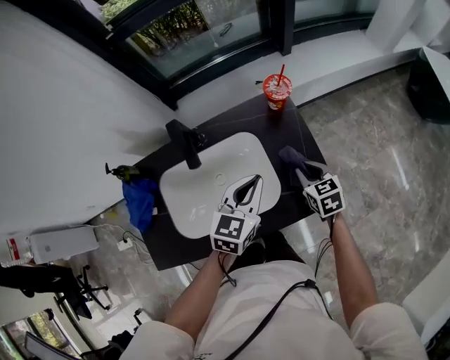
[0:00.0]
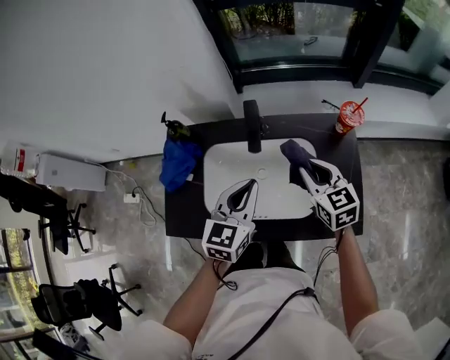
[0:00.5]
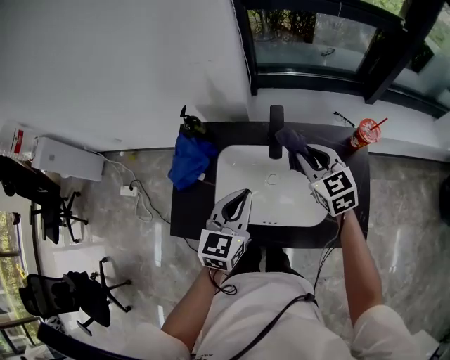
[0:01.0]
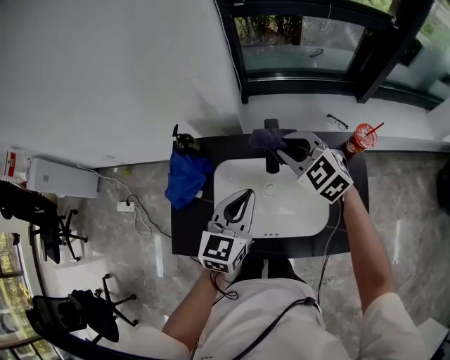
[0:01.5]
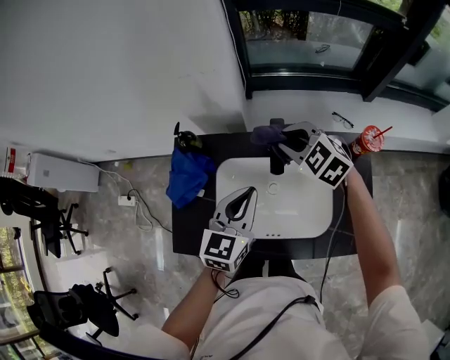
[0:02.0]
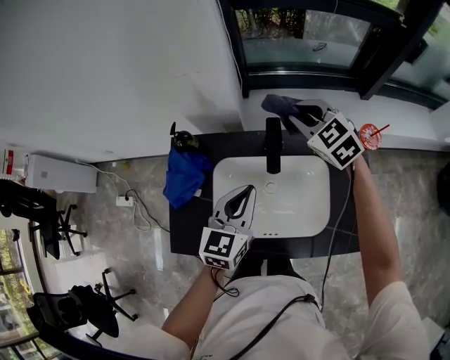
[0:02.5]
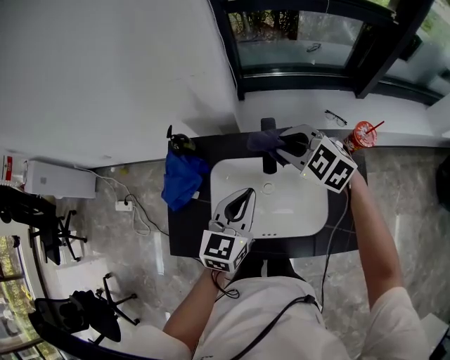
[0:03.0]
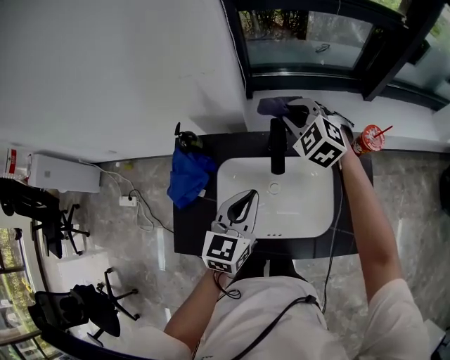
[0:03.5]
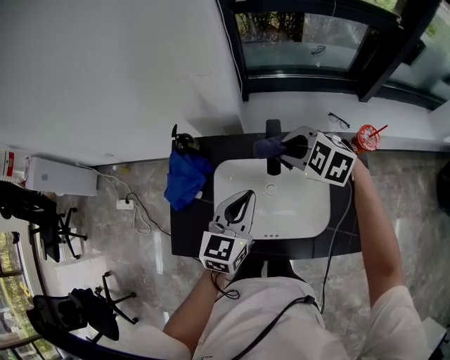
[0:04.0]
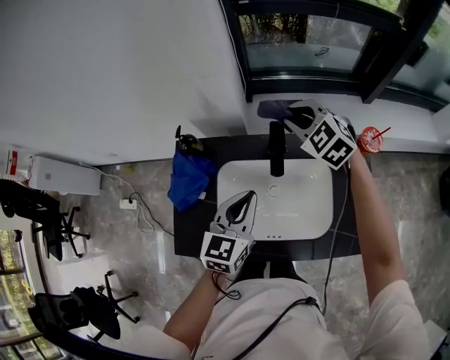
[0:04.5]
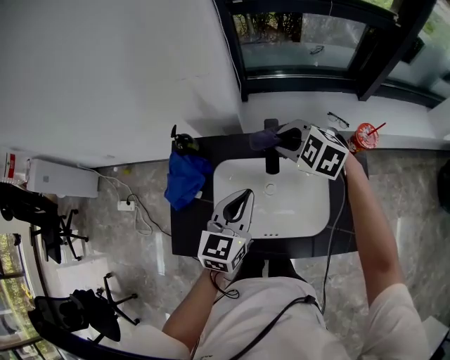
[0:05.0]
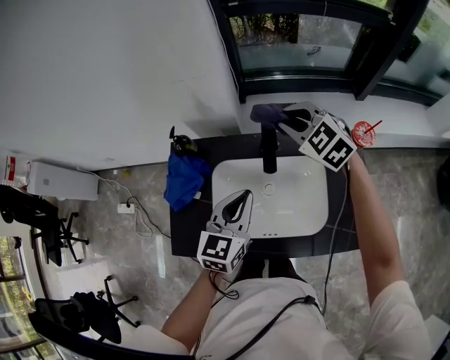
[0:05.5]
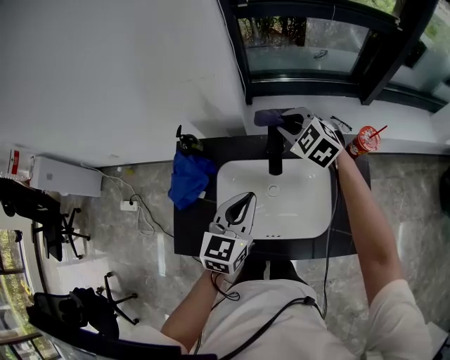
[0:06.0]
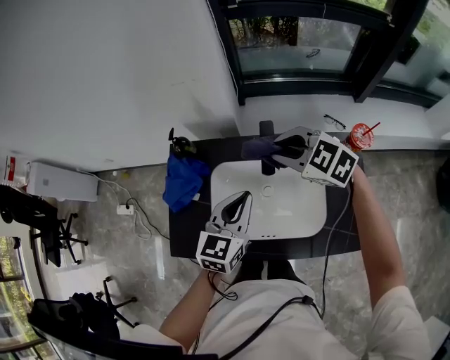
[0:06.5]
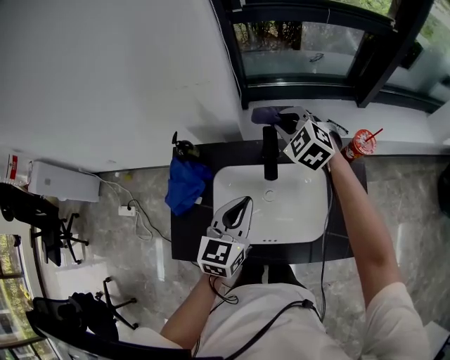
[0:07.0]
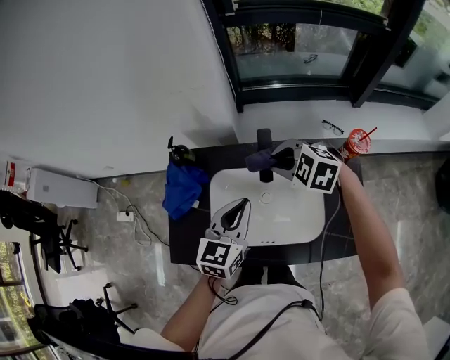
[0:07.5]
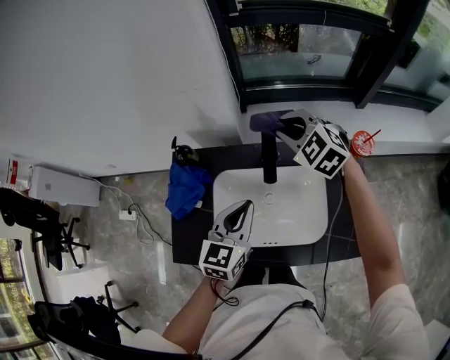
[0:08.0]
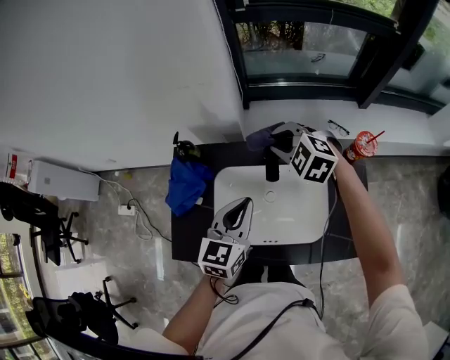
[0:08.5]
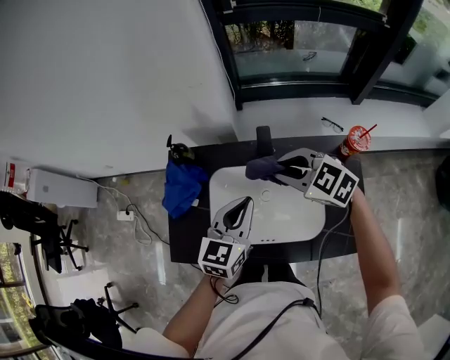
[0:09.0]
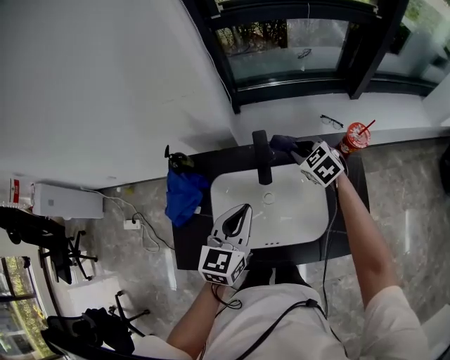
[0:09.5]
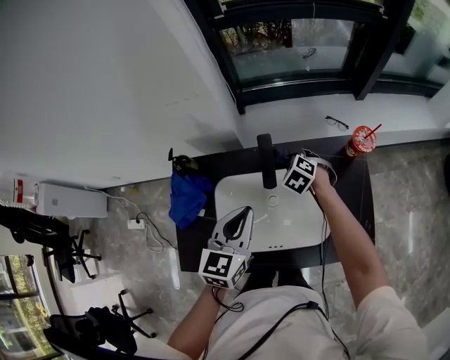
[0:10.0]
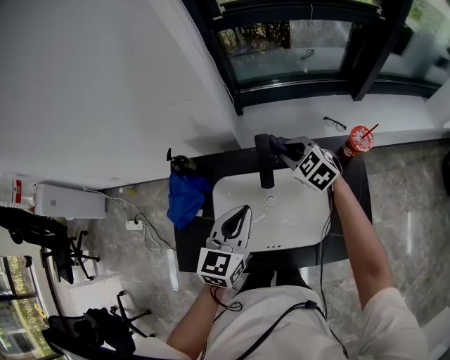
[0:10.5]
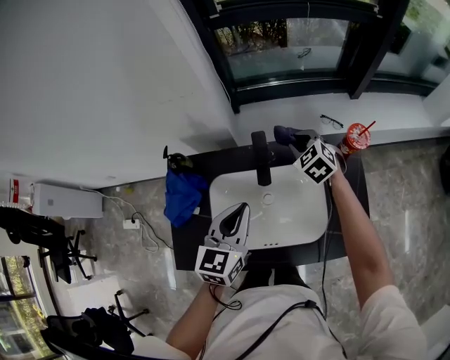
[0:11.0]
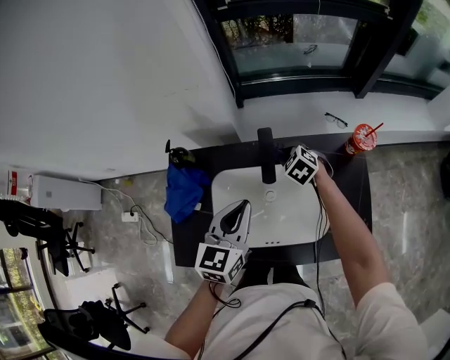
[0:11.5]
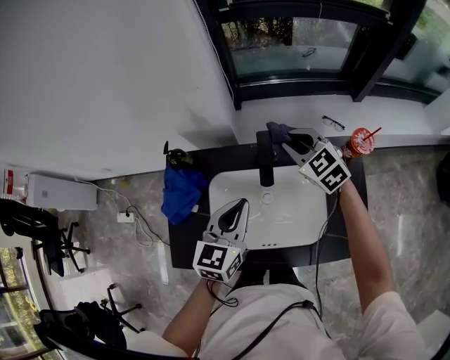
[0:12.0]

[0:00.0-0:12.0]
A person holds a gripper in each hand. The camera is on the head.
0:00.0 to 0:02.0: The right gripper moves approximately 40 cm, and twists some 50 degrees counterclockwise, seen from behind, while the left gripper shifts by some 25 cm, and swivels roughly 30 degrees.
0:02.0 to 0:04.0: The right gripper moves forward and backward over about 10 cm, changing direction 3 times.
0:04.0 to 0:06.0: The right gripper swings forward and backward, roughly 10 cm each way, with 2 reversals.
0:06.0 to 0:08.0: The right gripper moves forward and backward over roughly 10 cm, changing direction 3 times.
0:08.0 to 0:10.0: The right gripper goes approximately 20 cm downward, and swivels approximately 30 degrees.
0:10.0 to 0:12.0: The right gripper moves up and down over roughly 15 cm, changing direction 2 times, and changes its angle by about 30 degrees.

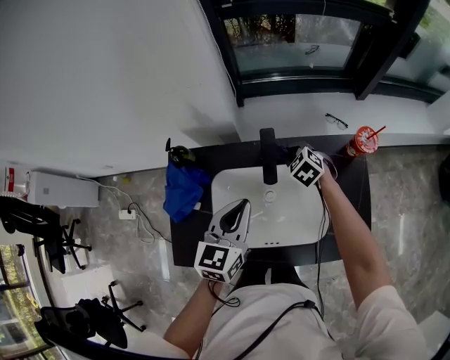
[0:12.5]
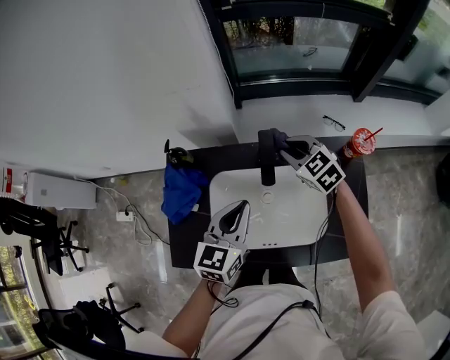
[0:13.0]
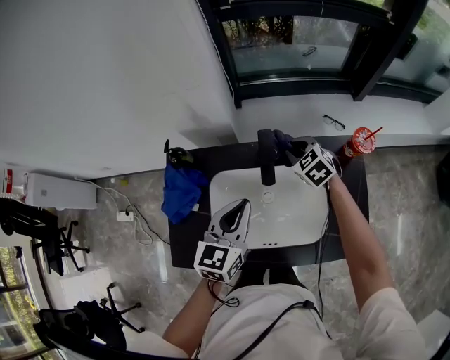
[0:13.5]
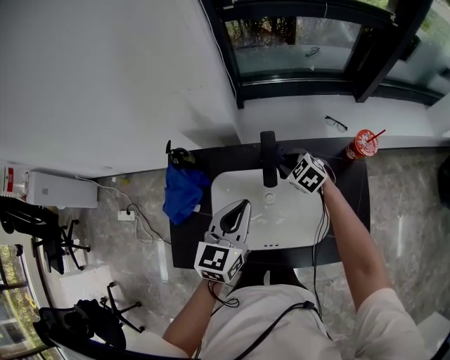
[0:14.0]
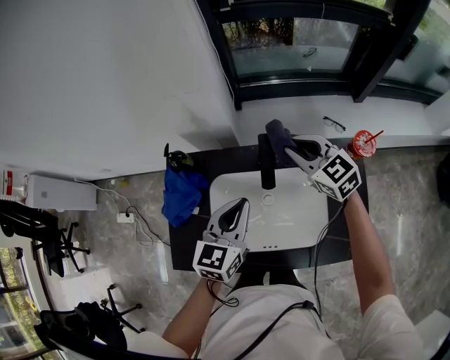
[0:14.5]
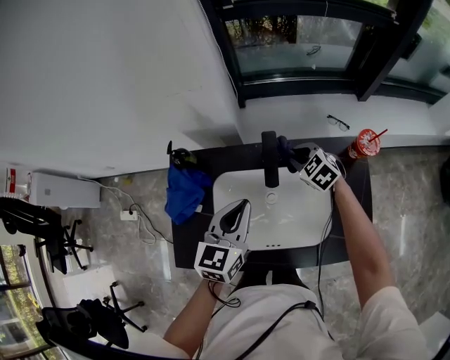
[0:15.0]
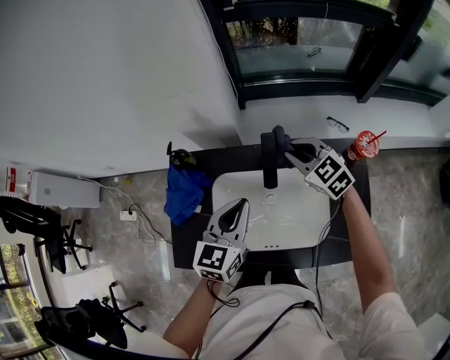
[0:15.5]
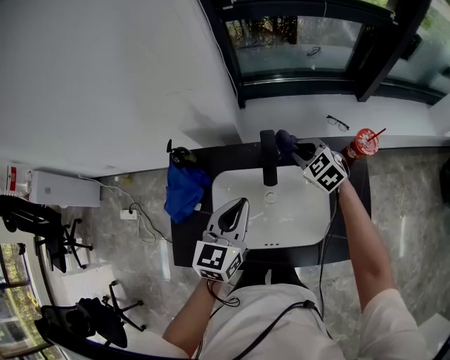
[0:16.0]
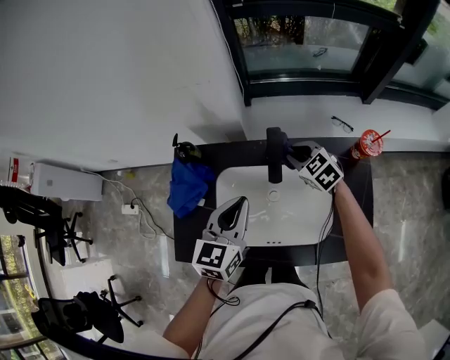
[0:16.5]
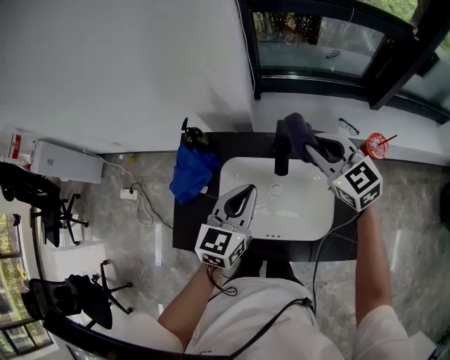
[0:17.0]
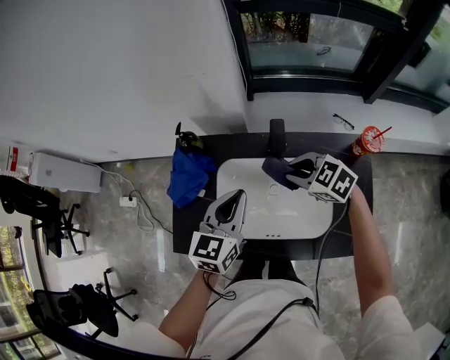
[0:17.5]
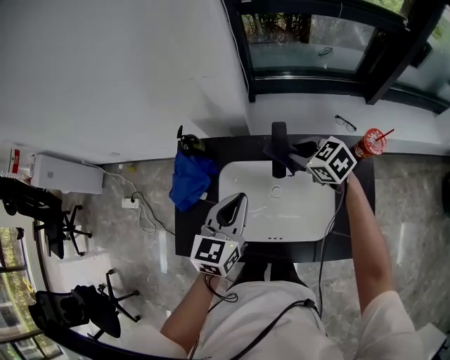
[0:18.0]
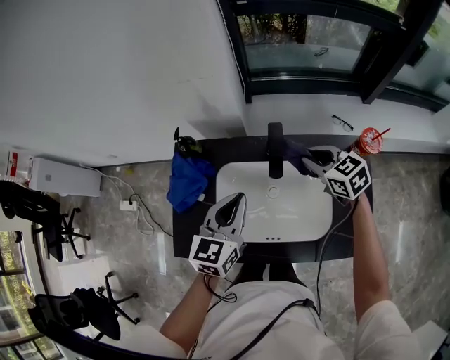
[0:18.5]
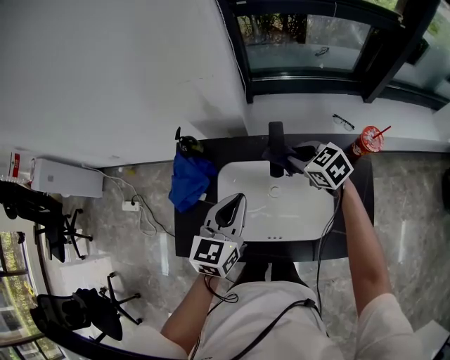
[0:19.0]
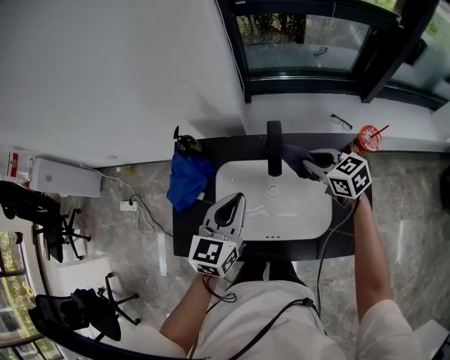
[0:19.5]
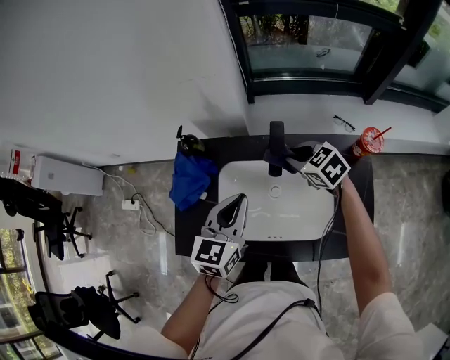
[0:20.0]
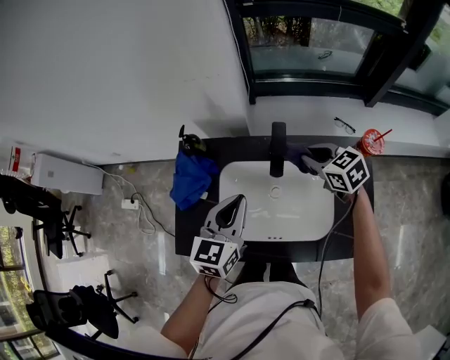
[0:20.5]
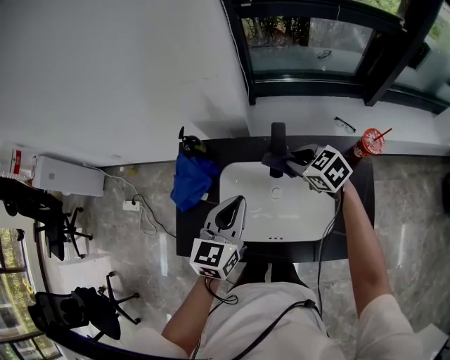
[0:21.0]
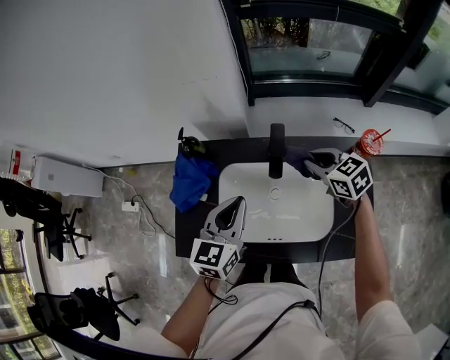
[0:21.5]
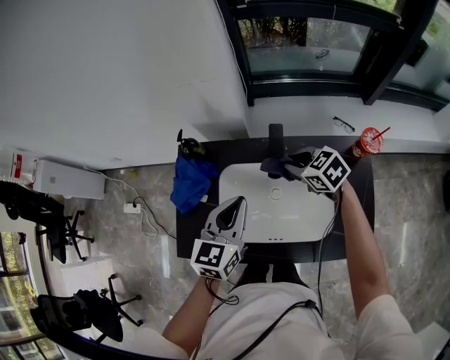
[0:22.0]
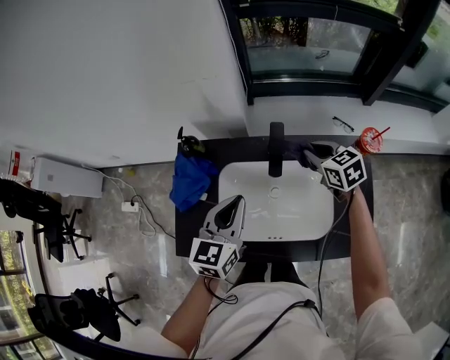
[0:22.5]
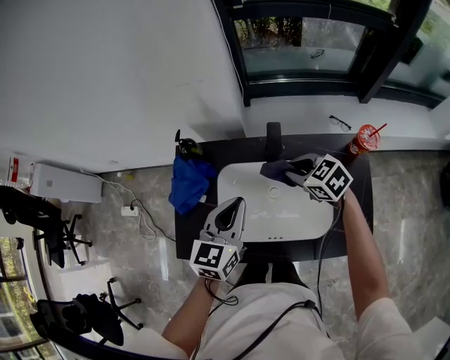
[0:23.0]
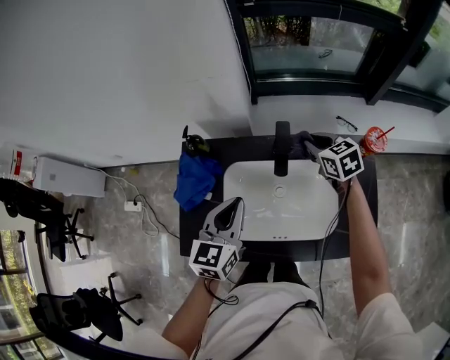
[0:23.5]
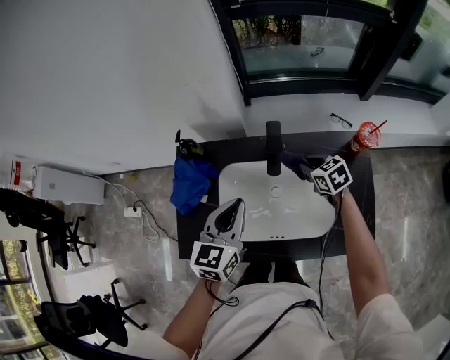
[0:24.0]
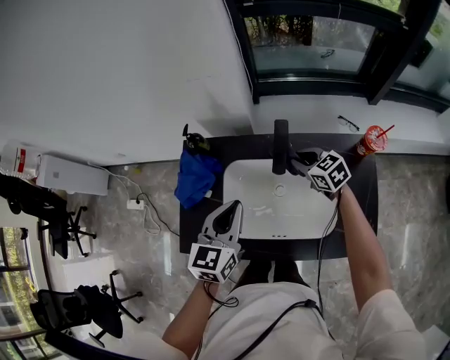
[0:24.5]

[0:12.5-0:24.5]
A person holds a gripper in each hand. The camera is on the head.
0:12.5 to 0:14.5: The right gripper goes up and down, roughly 15 cm each way, reversing 2 times, and tilts its fingers about 30 degrees upward.
0:14.5 to 0:16.5: The right gripper goes up and down, roughly 15 cm each way, reversing 2 times.
0:16.5 to 0:18.5: The right gripper travels upward by some 5 cm.
0:18.5 to 0:20.5: The right gripper moves left and right over some 5 cm, changing direction 3 times.
0:20.5 to 0:22.5: The right gripper goes left and right, approximately 5 cm each way, reversing 3 times.
0:22.5 to 0:24.5: The right gripper goes about 10 cm downward and to the left.

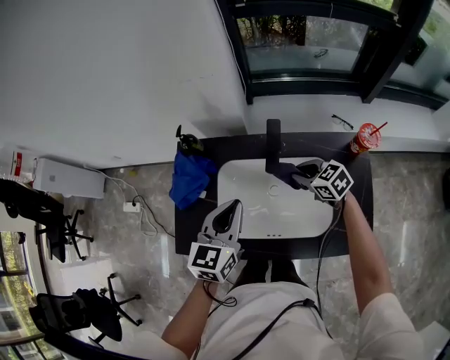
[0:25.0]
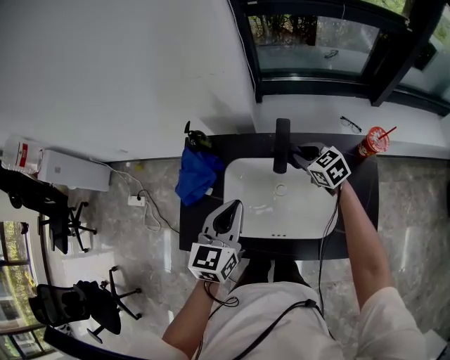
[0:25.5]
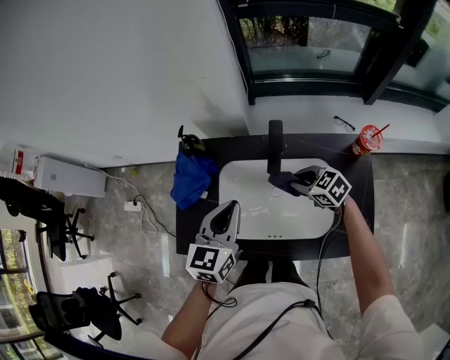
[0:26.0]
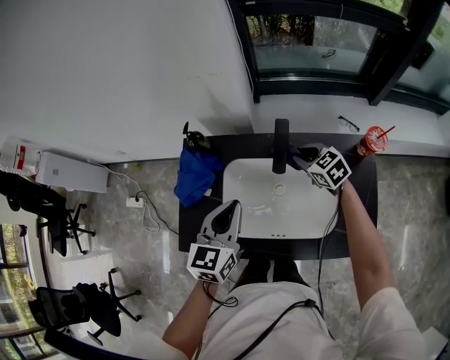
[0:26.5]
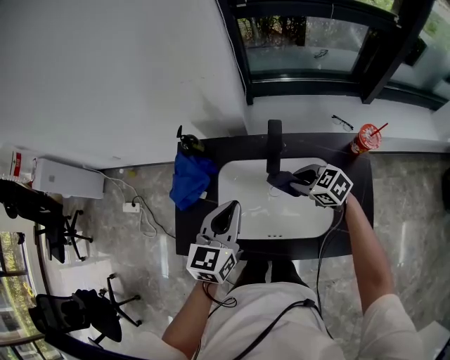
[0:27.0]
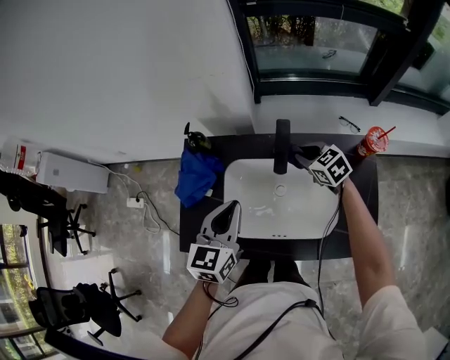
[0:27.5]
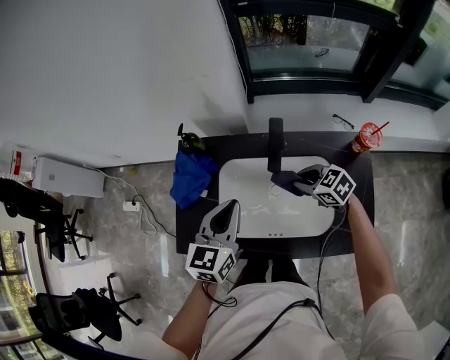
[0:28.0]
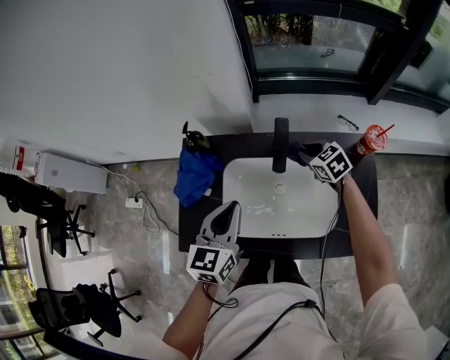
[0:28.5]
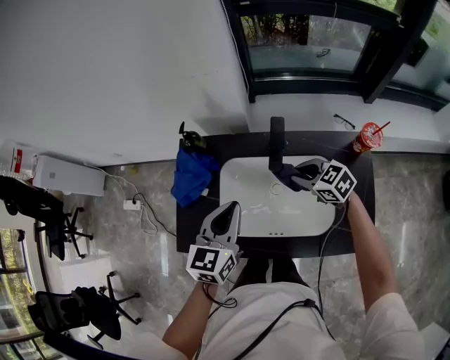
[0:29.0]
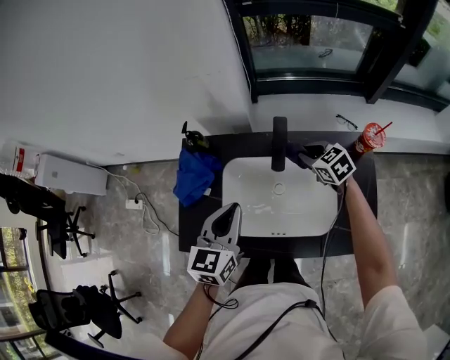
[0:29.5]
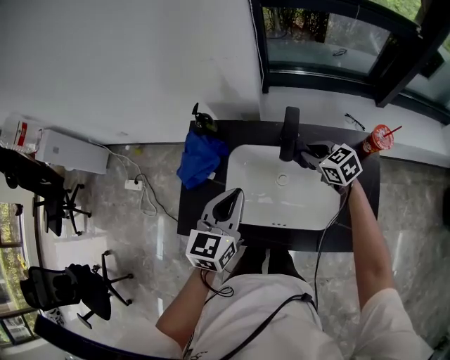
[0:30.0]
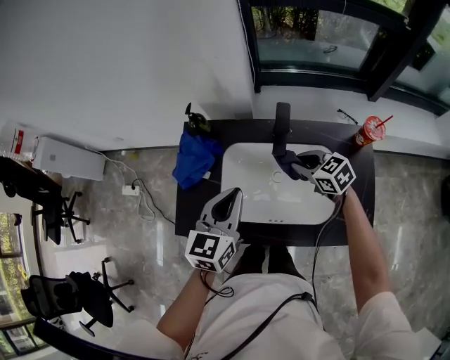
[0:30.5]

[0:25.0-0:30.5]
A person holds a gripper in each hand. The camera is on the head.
0:25.0 to 0:27.0: The right gripper swings forward and backward, approximately 10 cm each way, with 3 reversals.
0:27.0 to 0:28.5: The right gripper swings forward and backward, some 10 cm each way, with 2 reversals.
0:28.5 to 0:30.5: The right gripper swings forward and backward, some 10 cm each way, with 2 reversals.
